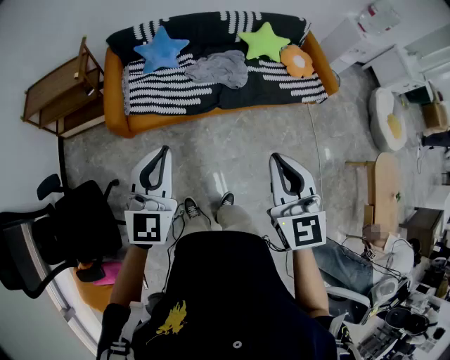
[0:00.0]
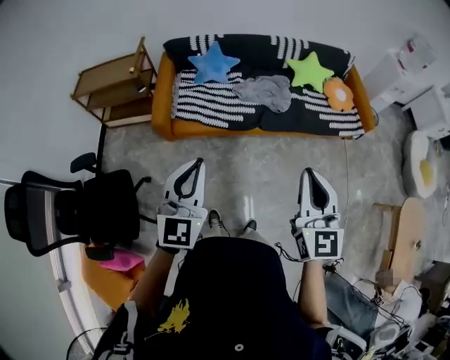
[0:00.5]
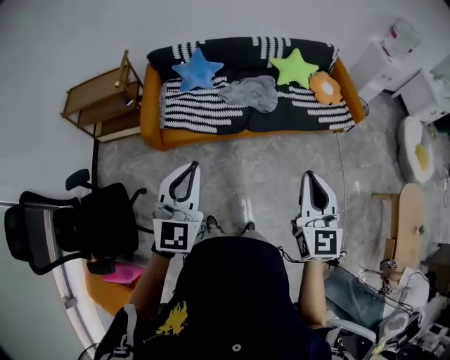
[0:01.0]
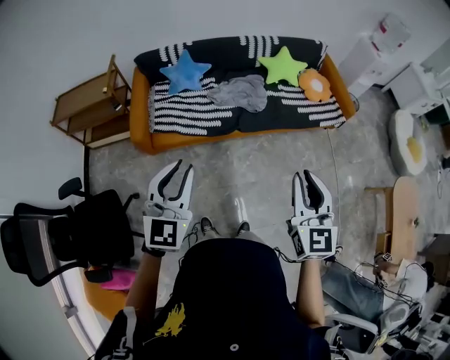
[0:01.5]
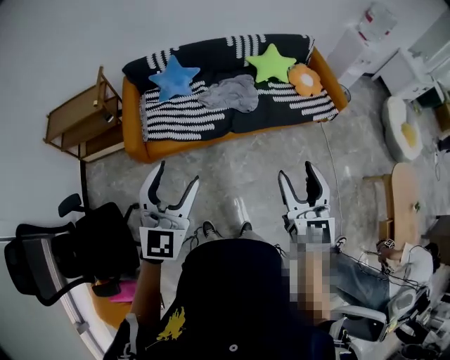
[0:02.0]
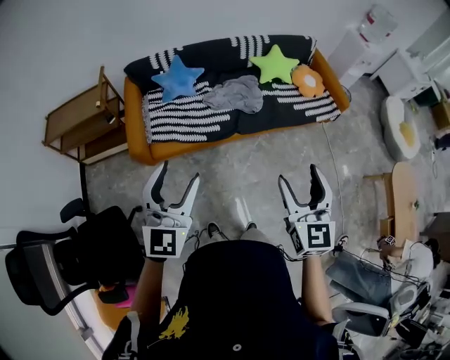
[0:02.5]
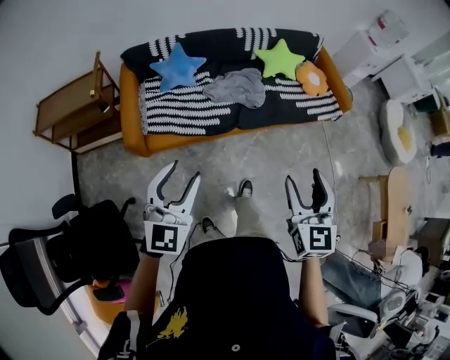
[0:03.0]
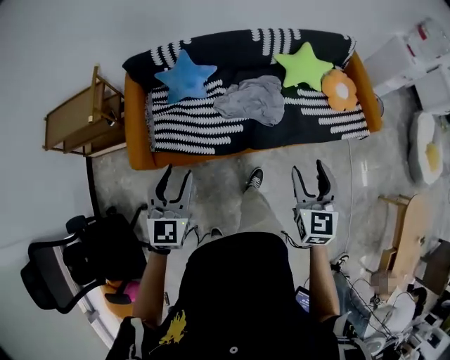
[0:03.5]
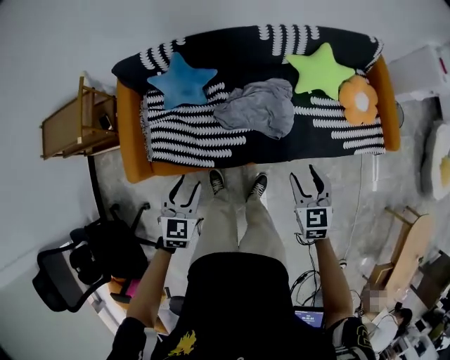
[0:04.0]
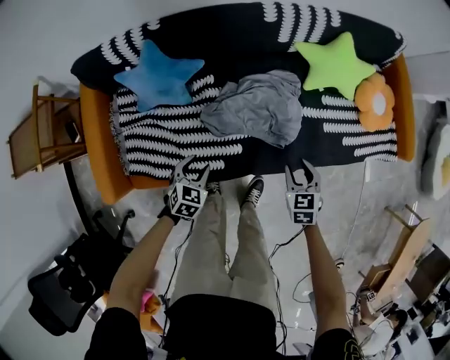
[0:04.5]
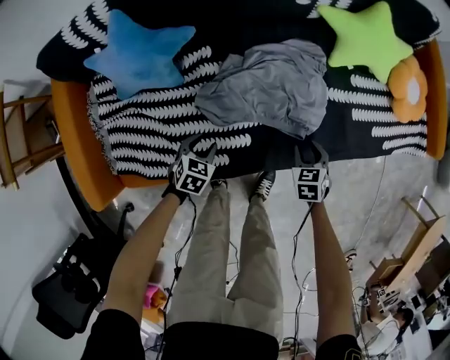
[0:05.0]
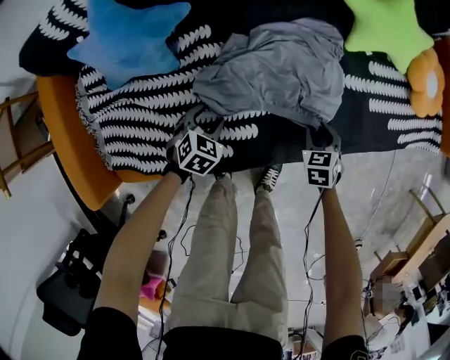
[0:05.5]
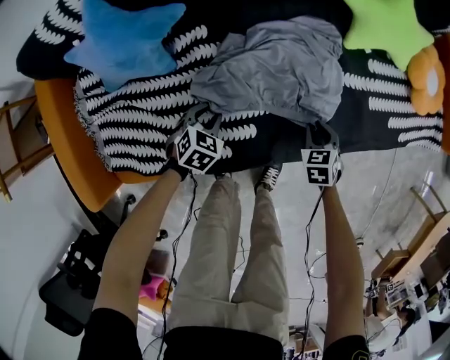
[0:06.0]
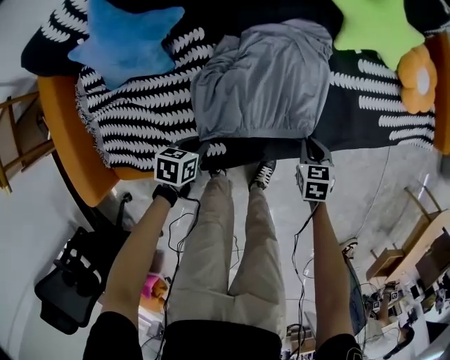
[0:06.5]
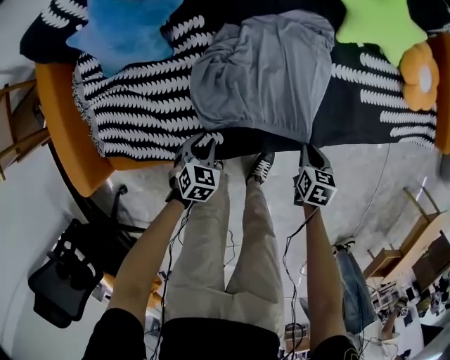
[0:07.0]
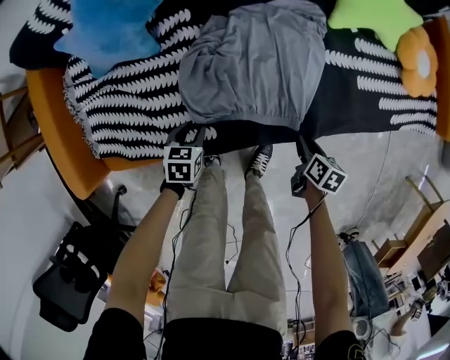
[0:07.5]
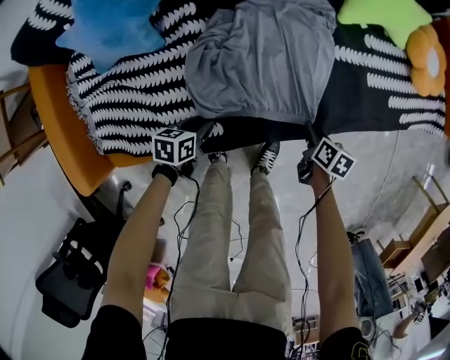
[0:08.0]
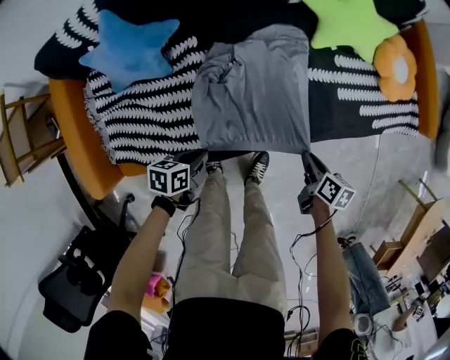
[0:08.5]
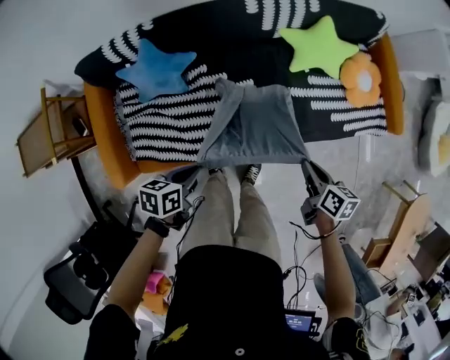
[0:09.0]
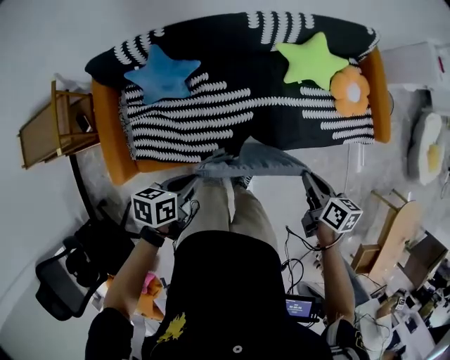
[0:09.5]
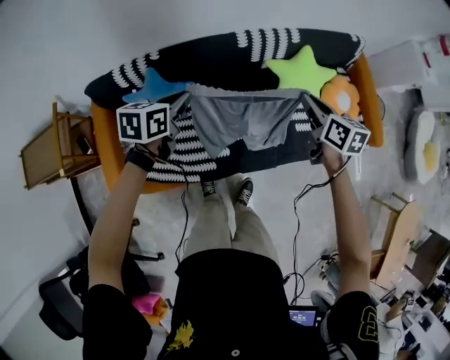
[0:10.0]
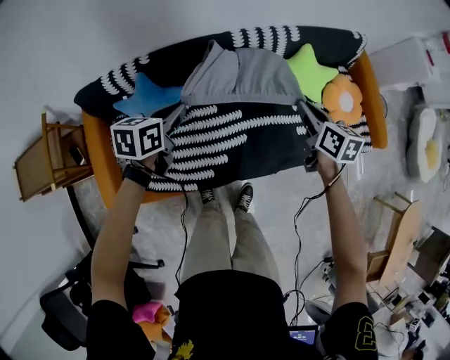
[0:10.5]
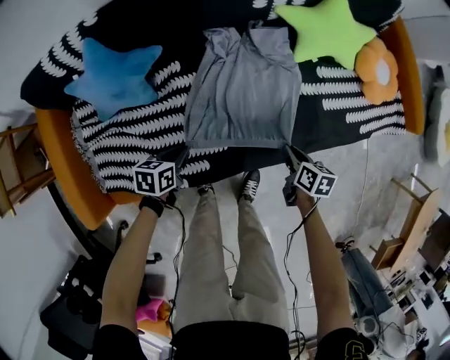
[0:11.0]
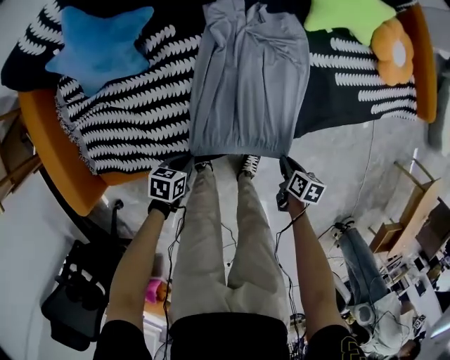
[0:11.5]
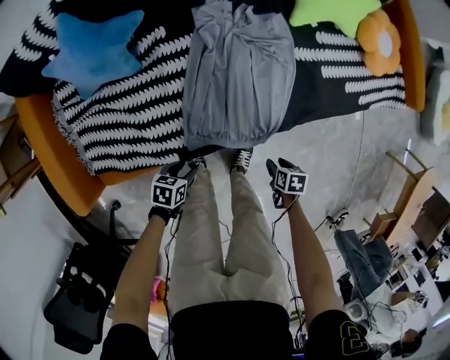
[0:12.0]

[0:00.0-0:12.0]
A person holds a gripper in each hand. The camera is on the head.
0:00.0 to 0:02.0: The right gripper heads to the right, covering some 10 cm, and opens, while the left gripper shifts by some 5 cm, and opens.
0:02.0 to 0:04.0: The two grippers travel together, forward, some 50 cm. The grippers both shift downward by roughly 30 cm. The left gripper points its fingers some 40 degrees further downward. Meanwhile the right gripper swivels roughly 30 degrees.
0:04.0 to 0:06.0: Both grippers move downward, approximately 50 cm. The left gripper turns by roughly 30 degrees, while the right gripper rotates approximately 30 degrees, and closes its fingers.
0:06.0 to 0:08.0: The right gripper moves about 10 cm, and twists roughly 50 degrees clockwise, seen from behind; the left gripper moves roughly 10 cm, and rolls counterclockwise, seen from behind, by approximately 40 degrees.
0:08.0 to 0:10.0: The two grippers go about 60 cm upward and forward. The right gripper swivels some 40 degrees, while the left gripper turns by some 20 degrees.
0:10.0 to 0:12.0: Both grippers move downward, some 60 cm. The right gripper points its fingers some 40 degrees further downward, and opens; the left gripper changes its angle by approximately 30 degrees, and opens.

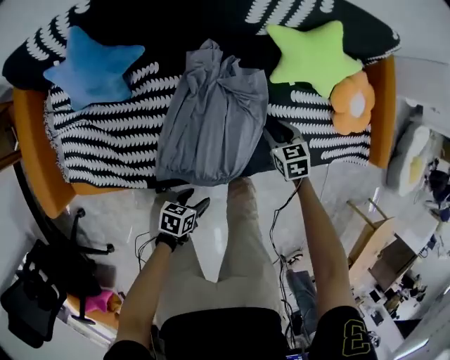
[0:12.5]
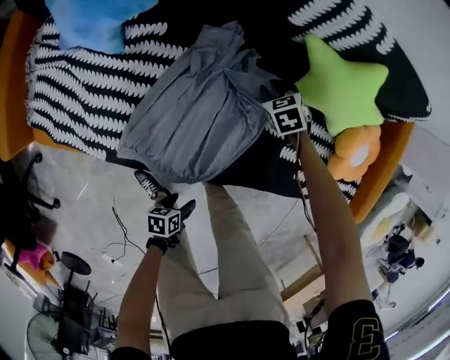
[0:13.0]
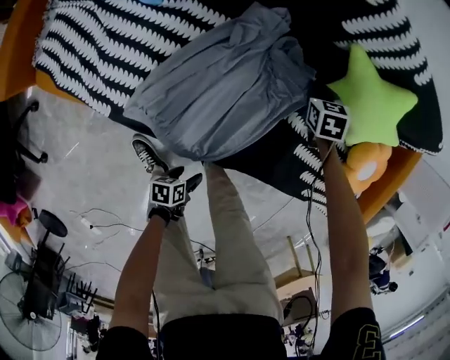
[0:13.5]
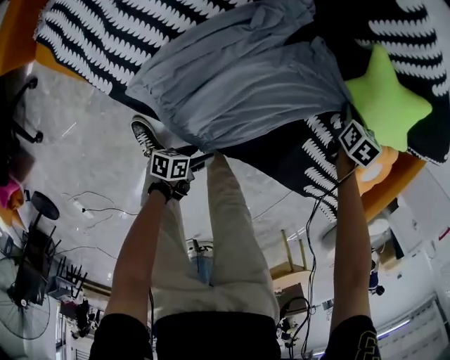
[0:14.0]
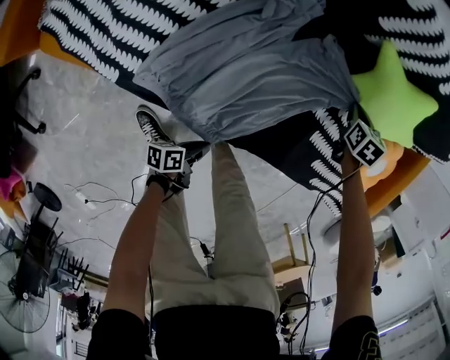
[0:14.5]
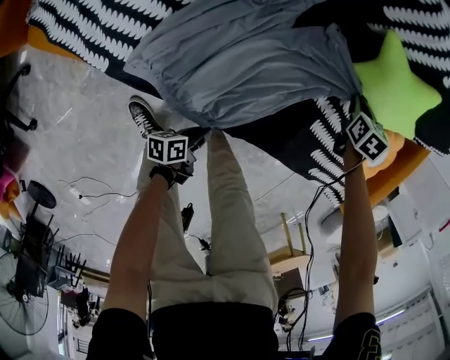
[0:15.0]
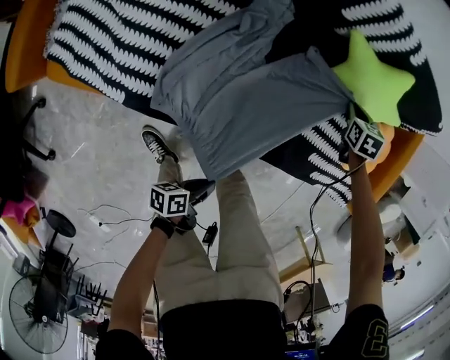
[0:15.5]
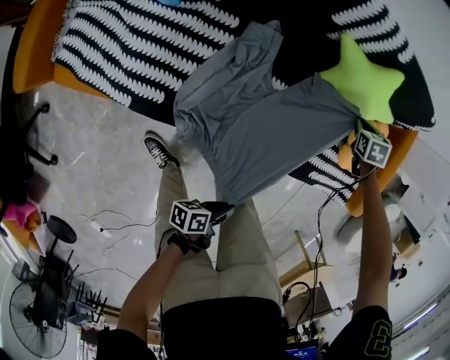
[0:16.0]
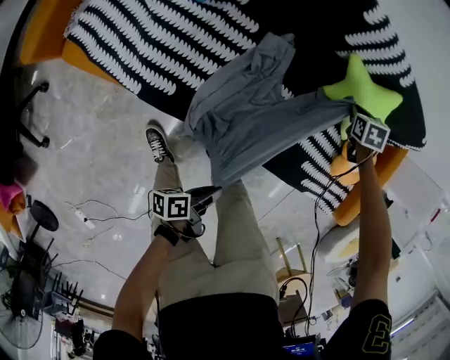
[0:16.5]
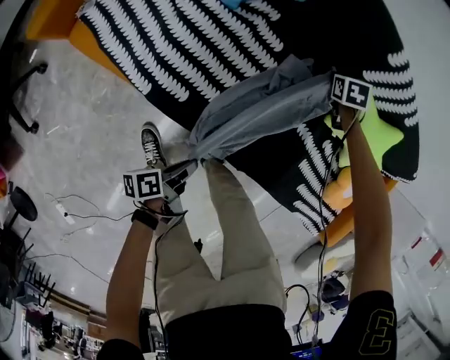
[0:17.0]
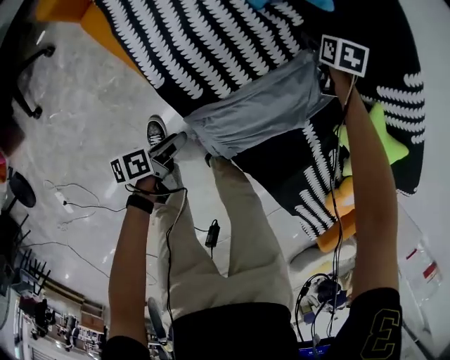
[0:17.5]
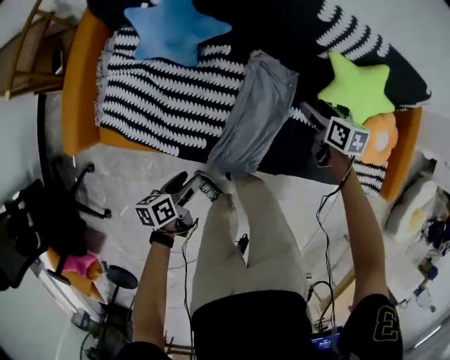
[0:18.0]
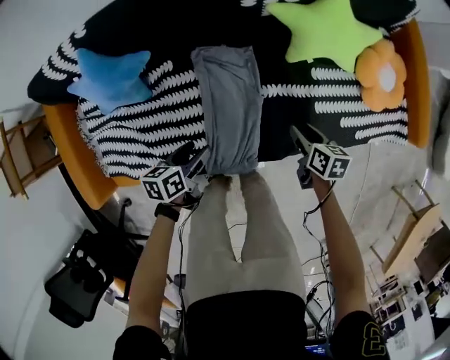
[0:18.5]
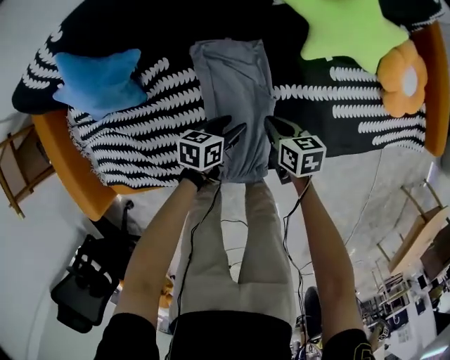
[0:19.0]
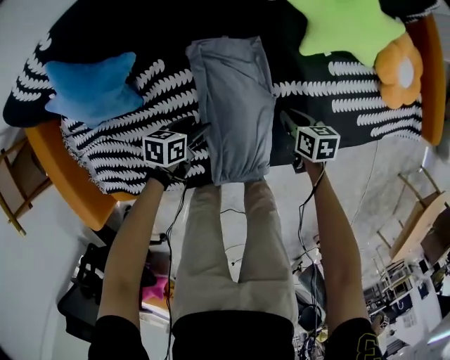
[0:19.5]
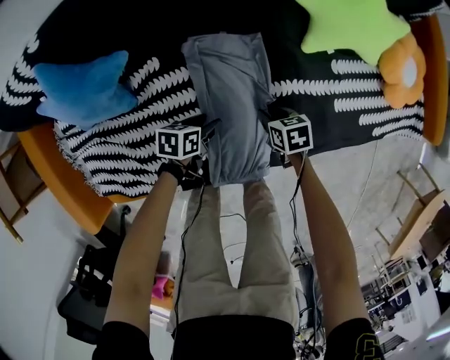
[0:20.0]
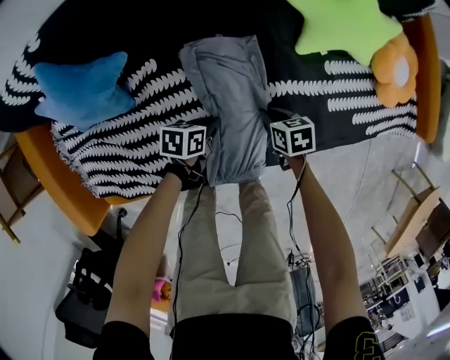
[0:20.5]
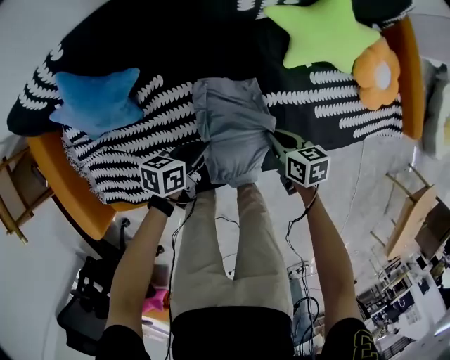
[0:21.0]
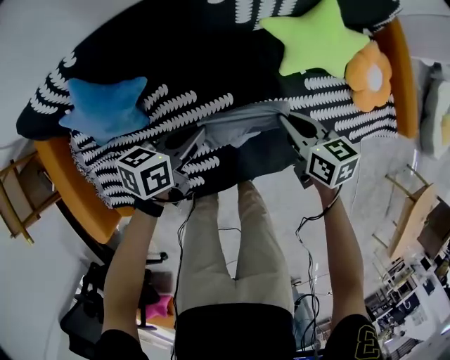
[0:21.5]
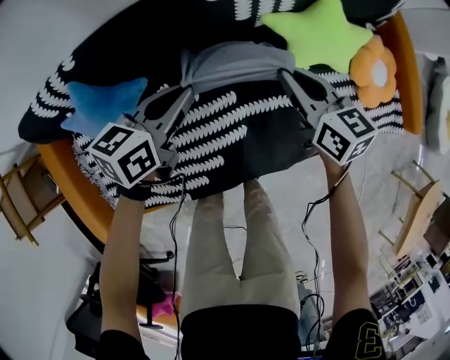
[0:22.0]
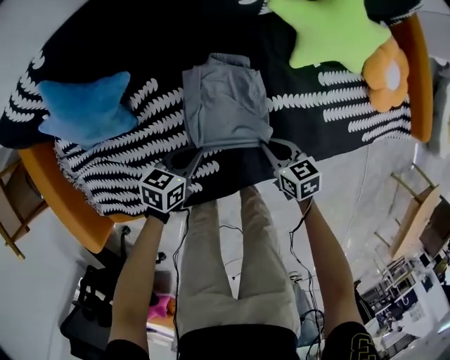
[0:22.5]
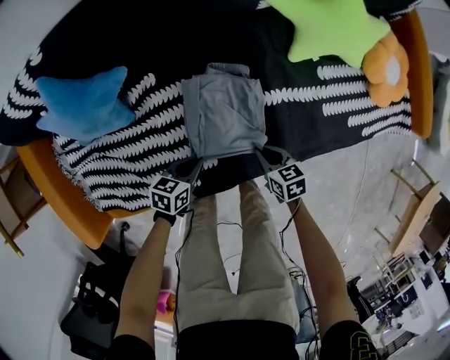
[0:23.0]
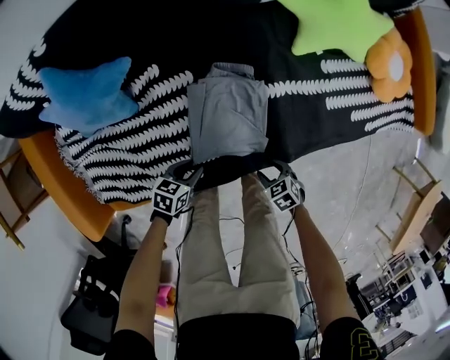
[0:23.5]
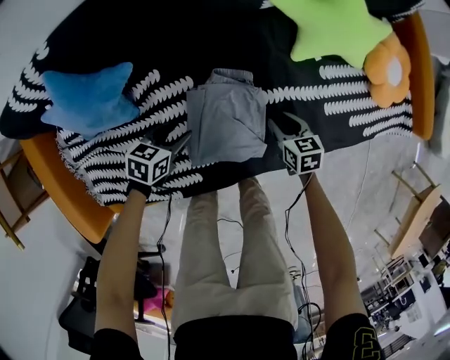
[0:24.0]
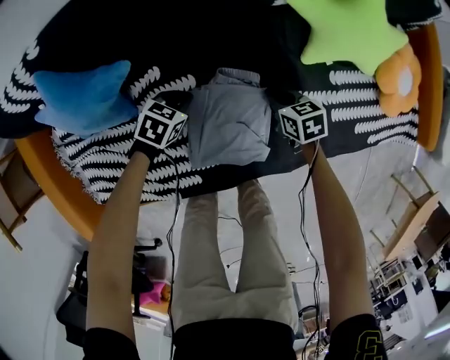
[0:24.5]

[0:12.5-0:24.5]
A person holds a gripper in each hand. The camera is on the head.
0:12.5 to 0:14.5: The left gripper shifts roughly 20 cm downward and to the right, rotates around the line of its fingers by about 50 degrees, counterclockwise from behind, and closes; the right gripper heads forward and downward, covering about 20 cm, and closes its fingers.
0:14.5 to 0:16.5: The left gripper is displaced upward by roughly 20 cm, while the right gripper is displaced upward and to the left by some 10 cm.
0:16.5 to 0:18.5: The left gripper moves some 10 cm downward and comes back, rotates around the line of its fingers by roughly 50 degrees, clockwise from behind, and opens its fingers; the right gripper goes up and down, roughly 15 cm each way, reversing 2 times, rolls clockwise, seen from behind, by roughly 60 degrees, and opens its fingers.
0:18.5 to 0:20.5: The two grippers go approximately 15 cm downward. The left gripper swivels about 20 degrees, and closes, while the right gripper closes up.
0:20.5 to 0:22.5: The left gripper moves roughly 30 cm upward and comes back, and rotates approximately 20 degrees. Meanwhile the right gripper goes upward and returns, some 30 cm each way.
0:22.5 to 0:24.5: The right gripper ends up some 15 cm from where it was, and opens and closes again, while the left gripper shifts by roughly 15 cm, turns by some 20 degrees, and opens, then closes again.

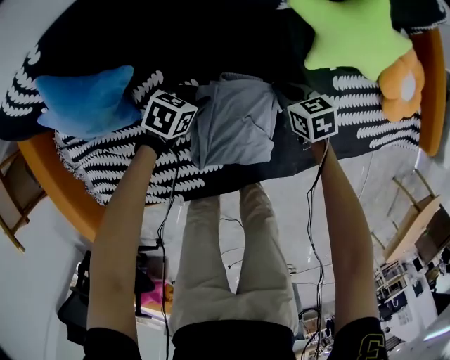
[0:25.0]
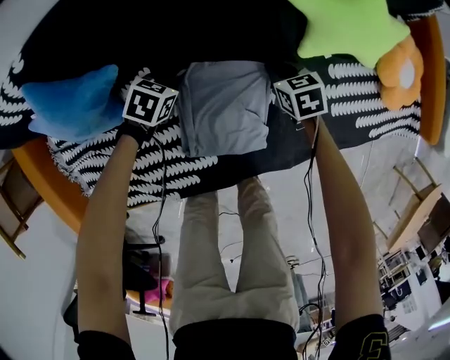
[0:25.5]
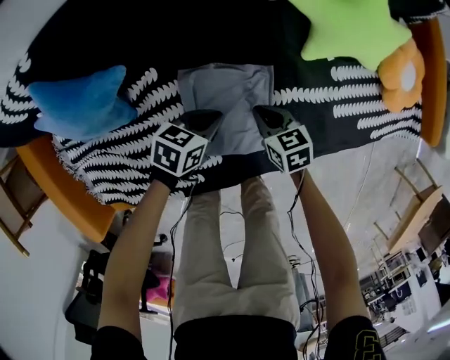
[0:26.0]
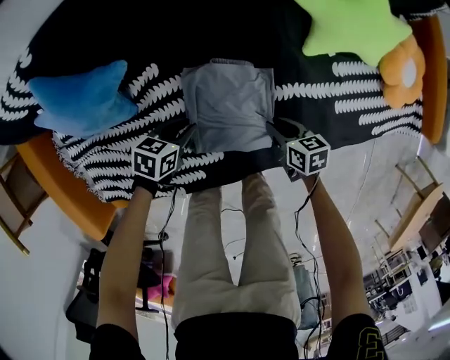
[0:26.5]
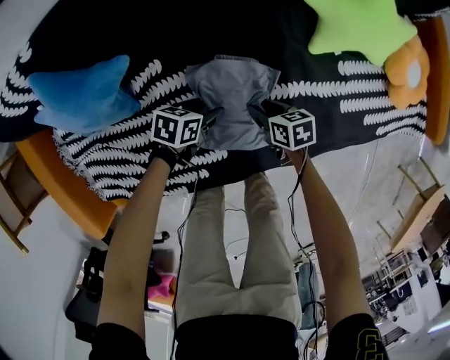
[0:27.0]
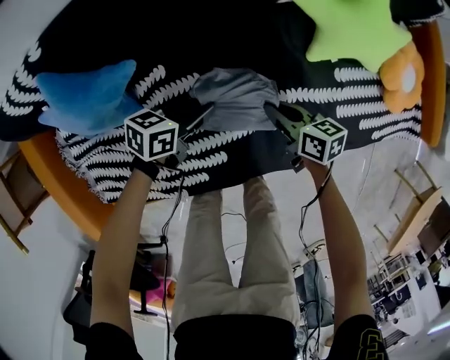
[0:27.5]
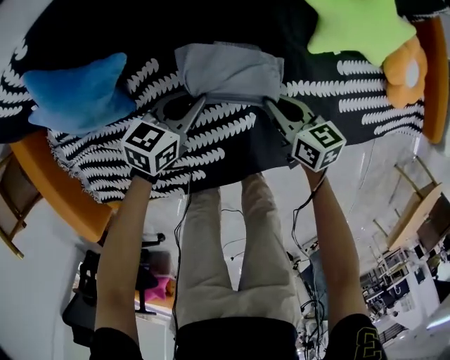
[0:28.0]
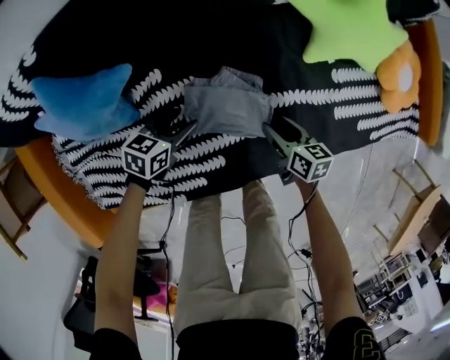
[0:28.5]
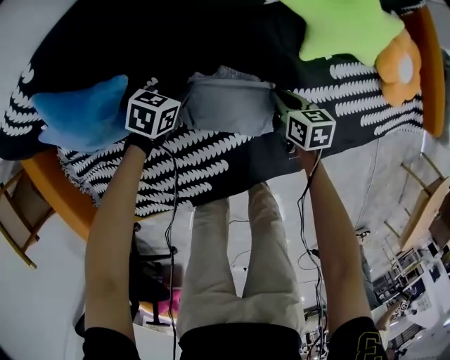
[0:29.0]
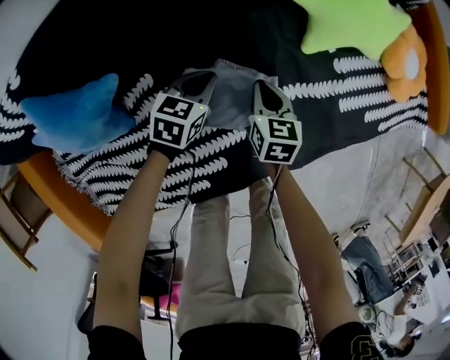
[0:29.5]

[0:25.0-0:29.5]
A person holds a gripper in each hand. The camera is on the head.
0:25.0 to 0:27.0: The left gripper changes place by approximately 5 cm, and closes, then reopens. Meanwhile the right gripper changes place by some 10 cm, turns by some 20 degrees, and opens its fingers.
0:27.0 to 0:29.5: The left gripper changes place by roughly 10 cm, swivels some 30 degrees, and closes, while the right gripper moves roughly 10 cm, turns by some 40 degrees, and closes up.
